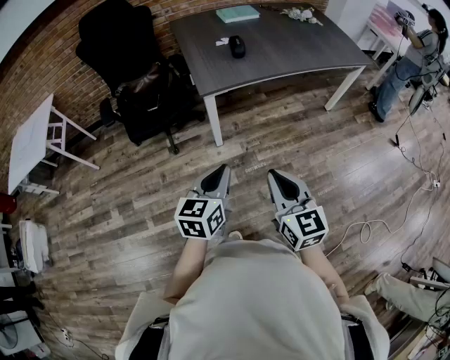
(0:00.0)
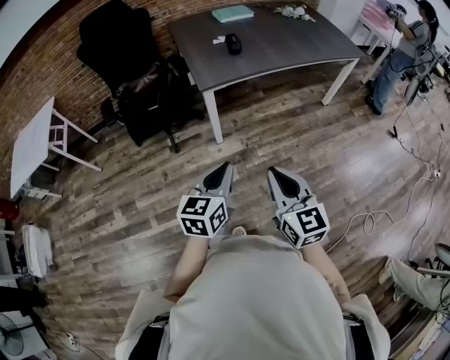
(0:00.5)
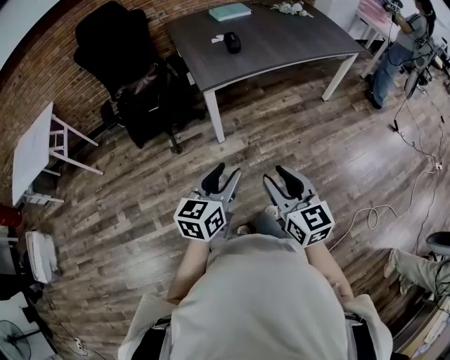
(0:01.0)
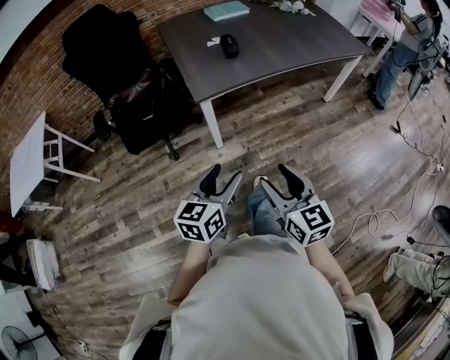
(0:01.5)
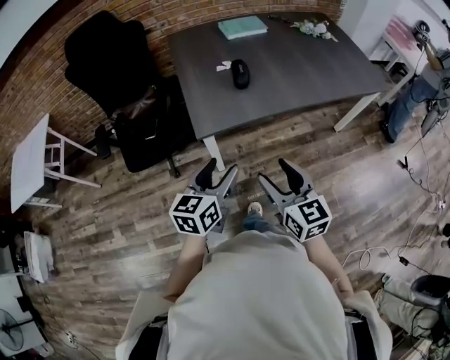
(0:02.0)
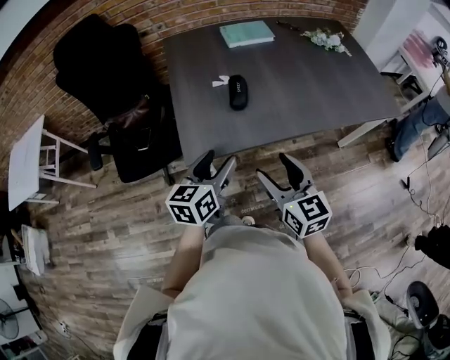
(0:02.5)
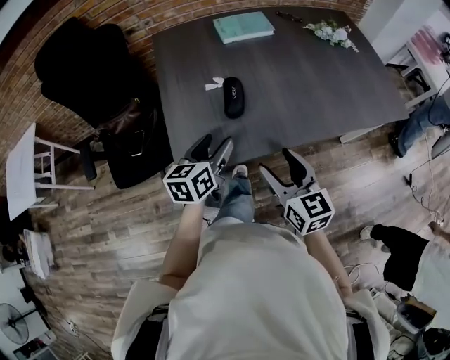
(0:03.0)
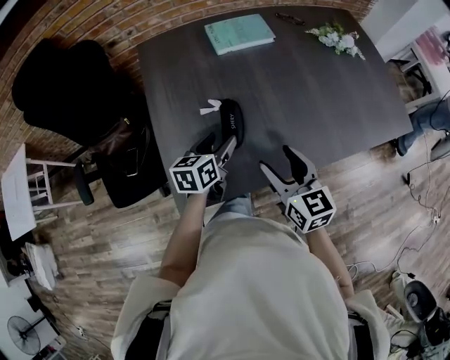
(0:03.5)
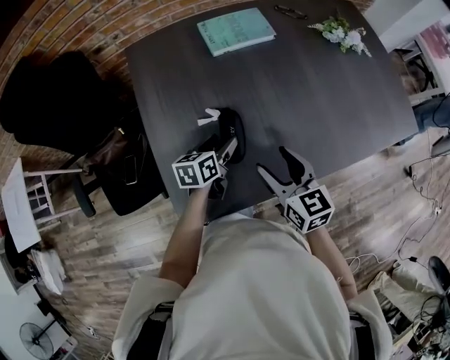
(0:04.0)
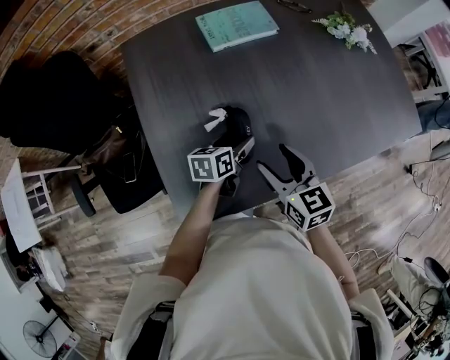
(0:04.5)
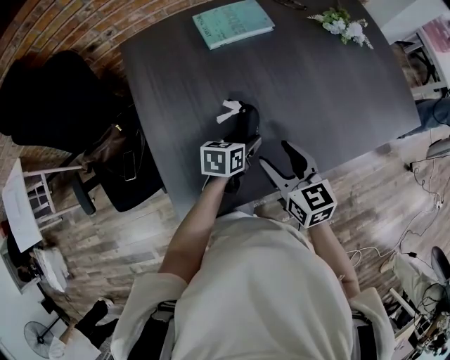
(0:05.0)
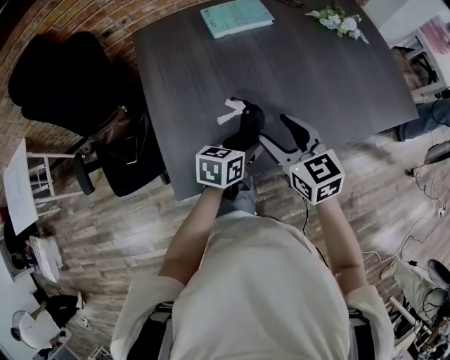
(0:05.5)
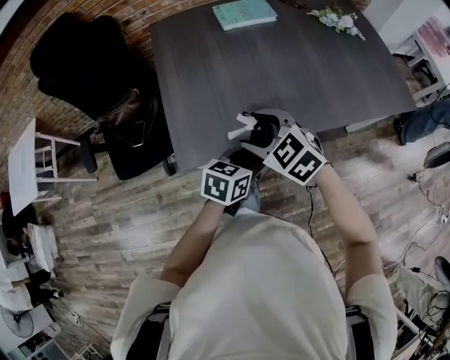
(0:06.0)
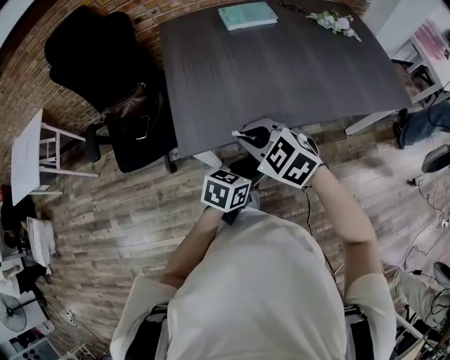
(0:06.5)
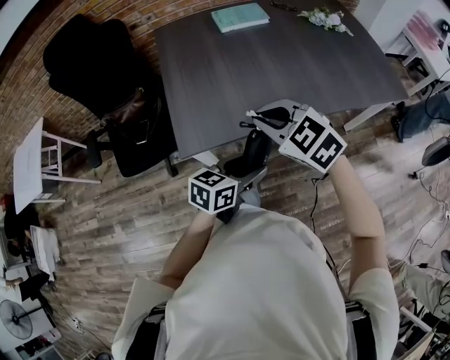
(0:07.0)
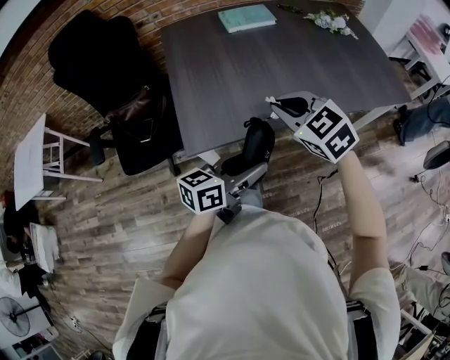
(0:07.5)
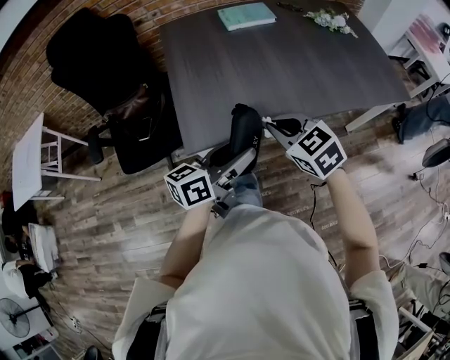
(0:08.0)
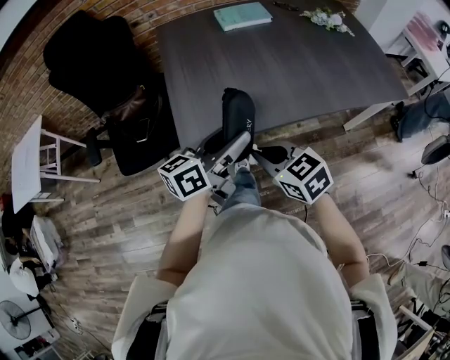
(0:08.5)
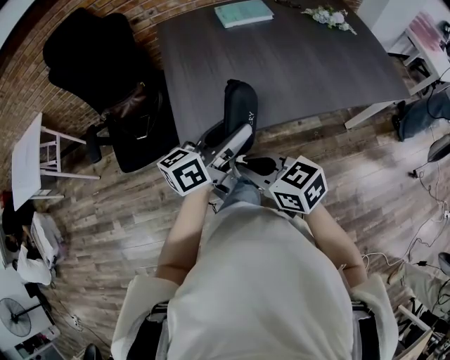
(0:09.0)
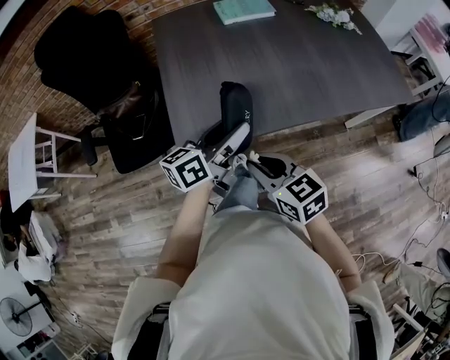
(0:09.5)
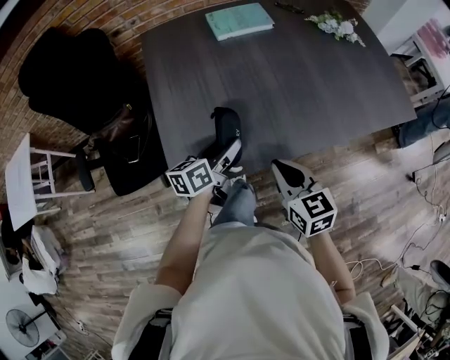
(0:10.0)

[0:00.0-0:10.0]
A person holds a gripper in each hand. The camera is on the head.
0:00.0 to 0:02.0: The two grippers go some 25 cm forward. The right gripper opens. Meanwhile the left gripper opens up.
0:02.0 to 0:04.0: Both grippers are carried forward, roughly 40 cm. The left gripper changes its angle by roughly 30 degrees.
0:04.0 to 0:06.0: The right gripper is displaced backward by some 15 cm, and swivels about 50 degrees. The left gripper shifts about 25 cm backward and to the right, and changes its angle by some 20 degrees.
0:06.0 to 0:08.0: The left gripper travels upward, backward and to the left by about 15 cm, and tilts its fingers about 30 degrees upward; the right gripper is displaced backward by approximately 5 cm, and closes up.
0:08.0 to 0:10.0: The right gripper goes approximately 5 cm forward, and turns by approximately 30 degrees. Meanwhile the left gripper heads forward and downward, covering some 20 cm.

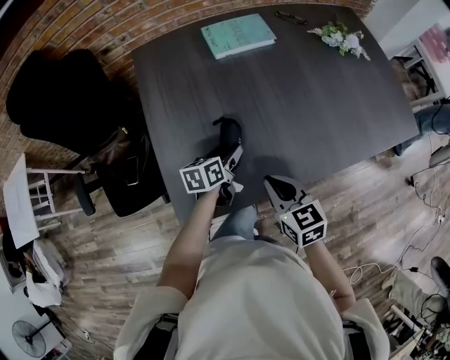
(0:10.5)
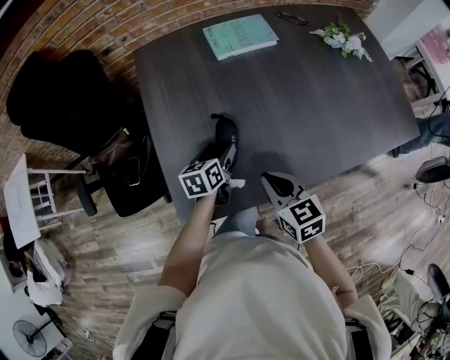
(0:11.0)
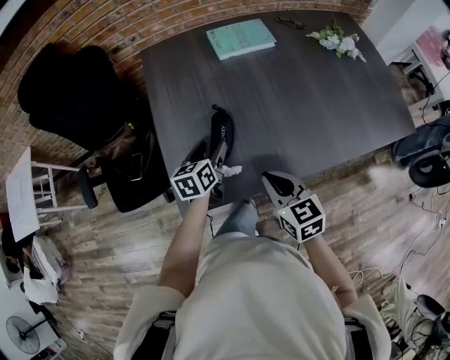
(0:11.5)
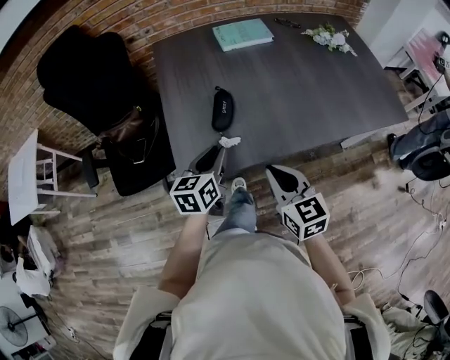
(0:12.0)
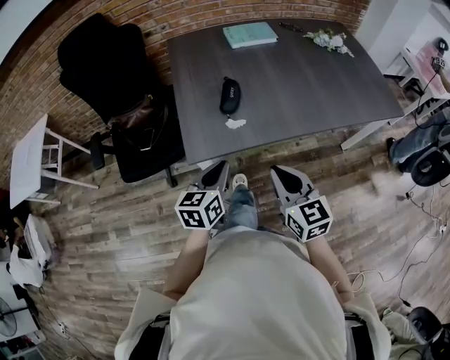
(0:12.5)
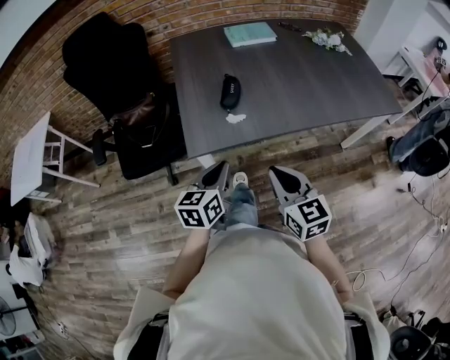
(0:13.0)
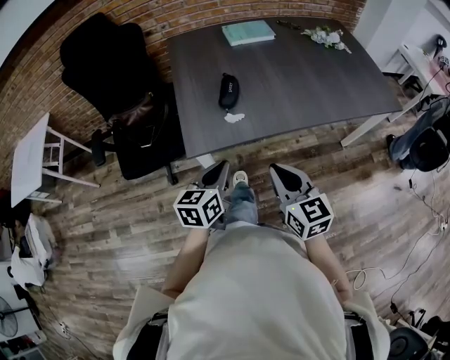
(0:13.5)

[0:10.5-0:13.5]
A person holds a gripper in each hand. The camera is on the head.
0:10.5 to 0:12.0: The grippers both shift backward and upward by some 15 cm. The left gripper turns by approximately 20 degrees, and closes up.
0:12.0 to 0:13.5: Both grippers move backward, approximately 15 cm.

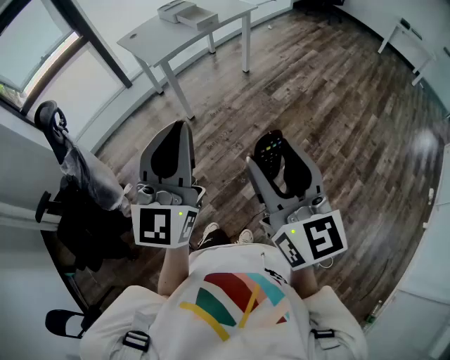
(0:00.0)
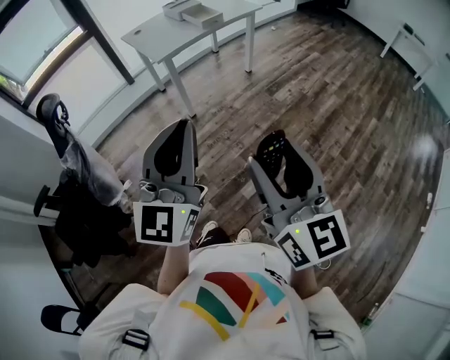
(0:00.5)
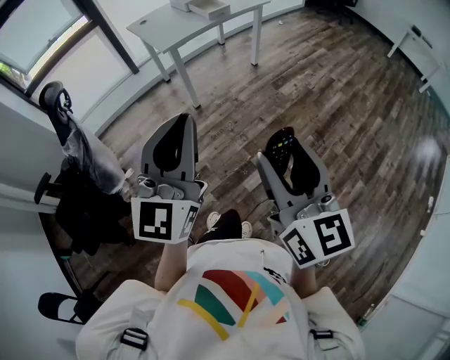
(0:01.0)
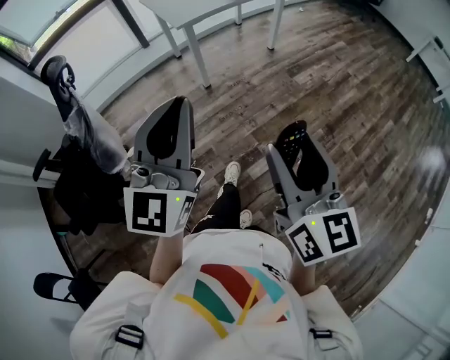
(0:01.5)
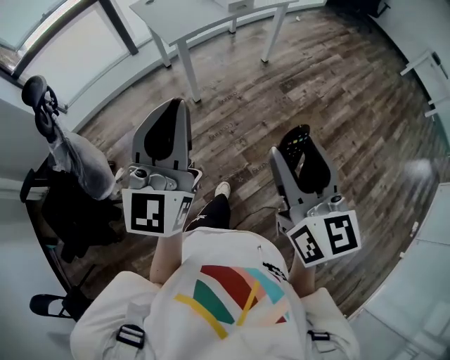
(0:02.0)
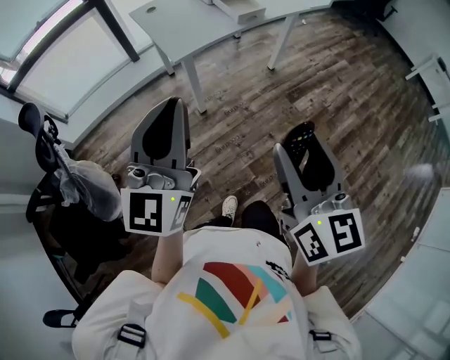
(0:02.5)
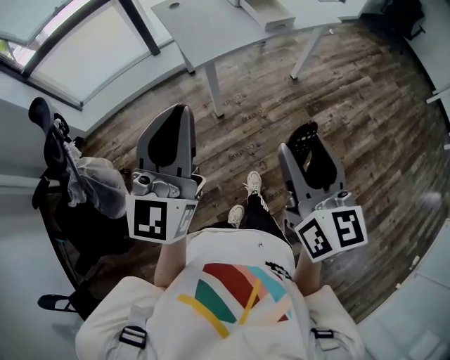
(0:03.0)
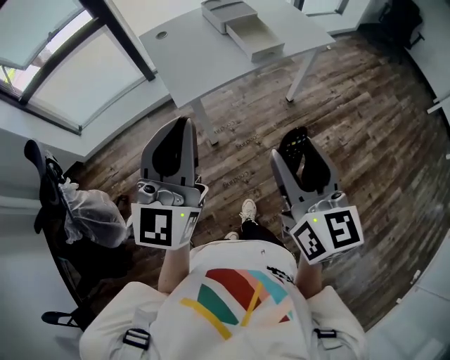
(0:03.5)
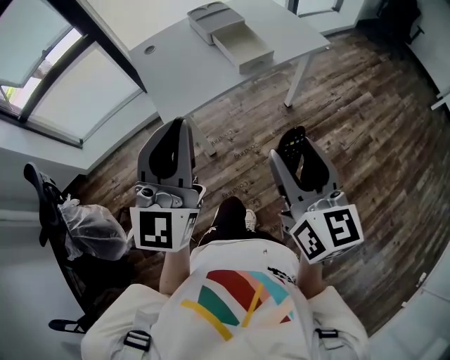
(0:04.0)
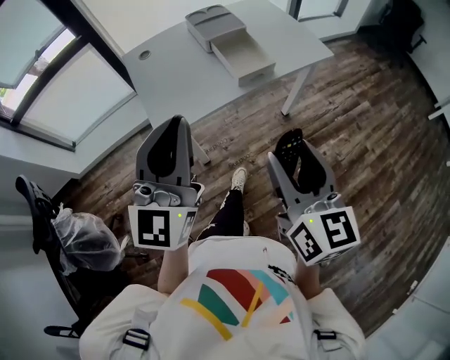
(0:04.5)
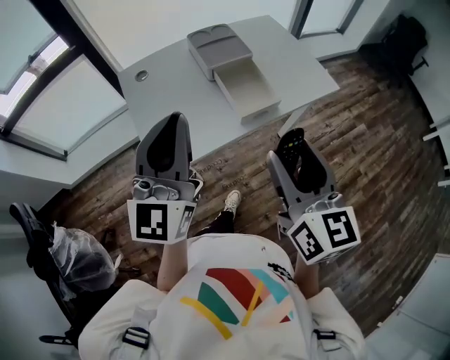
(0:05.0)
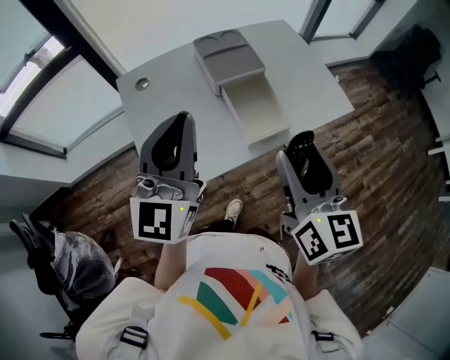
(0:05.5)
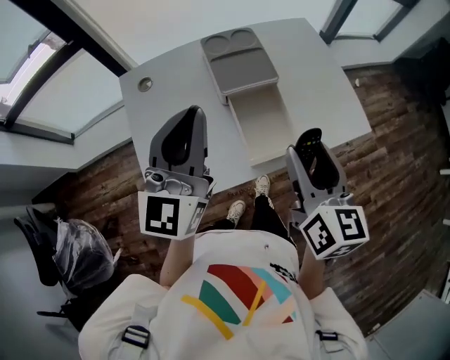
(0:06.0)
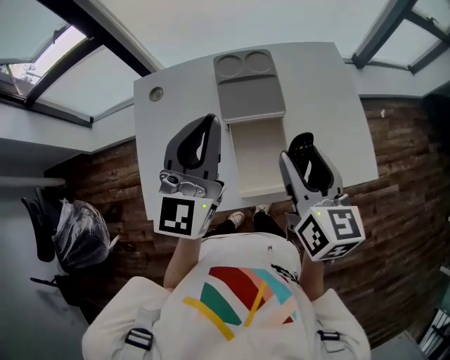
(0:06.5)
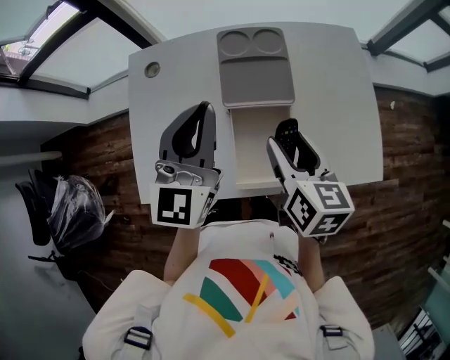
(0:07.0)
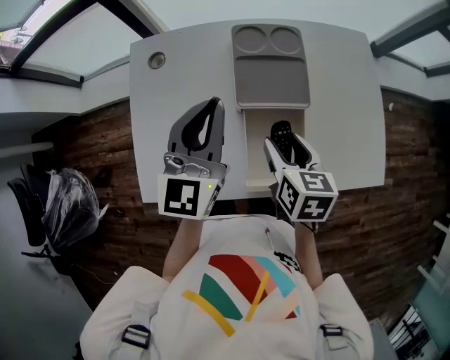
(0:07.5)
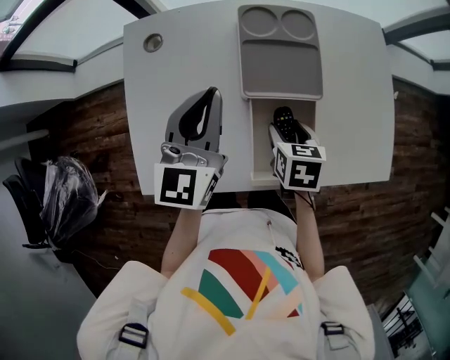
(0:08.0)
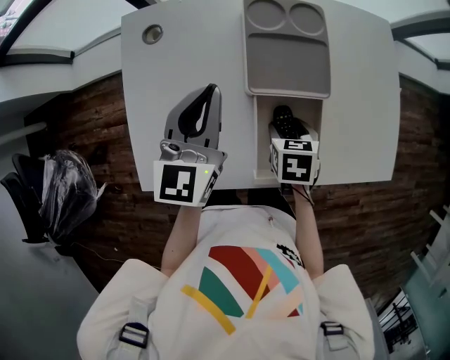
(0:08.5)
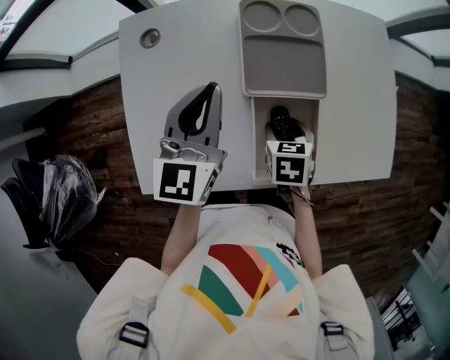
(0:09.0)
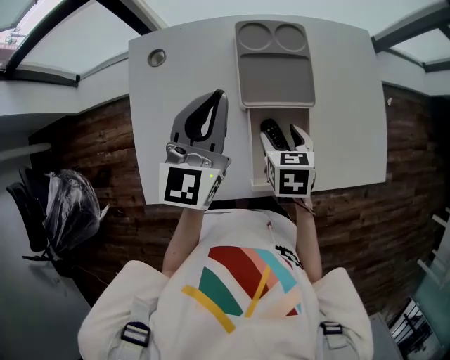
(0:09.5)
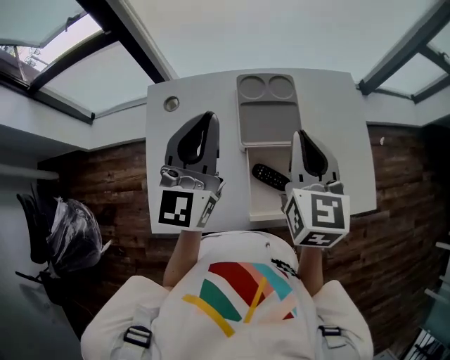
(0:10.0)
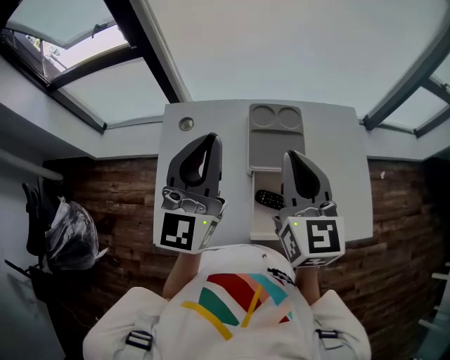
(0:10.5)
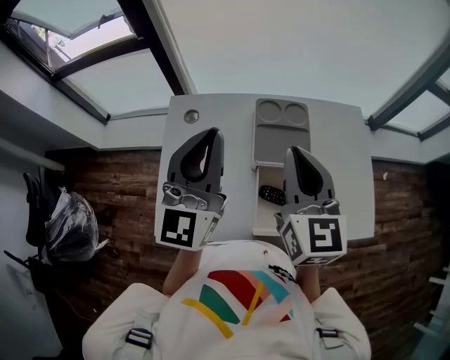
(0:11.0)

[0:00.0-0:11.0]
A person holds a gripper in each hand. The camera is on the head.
0:00.0 to 0:02.0: The right gripper is displaced forward by some 20 cm. Meanwhile the left gripper heads forward and to the left, covering roughly 20 cm.
0:02.0 to 0:03.5: Both grippers travel together forward, approximately 30 cm.
0:03.5 to 0:05.5: The grippers both shift forward by approximately 40 cm.
0:05.5 to 0:07.5: The two grippers go approximately 25 cm forward and downward. The right gripper tips its fingers downward by some 30 degrees, while the left gripper changes its angle by some 20 degrees.
0:07.5 to 0:09.0: The right gripper goes some 10 cm downward, and changes its angle by about 20 degrees. The left gripper moves downward, roughly 5 cm.
0:09.0 to 0:11.0: The left gripper is displaced upward by some 20 cm, and swivels roughly 30 degrees. Meanwhile the right gripper shifts some 35 cm upward, tips its fingers upward by some 60 degrees, and closes its fingers.

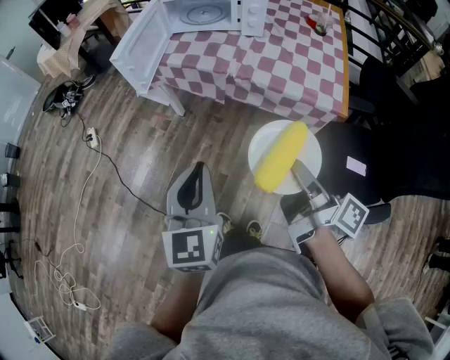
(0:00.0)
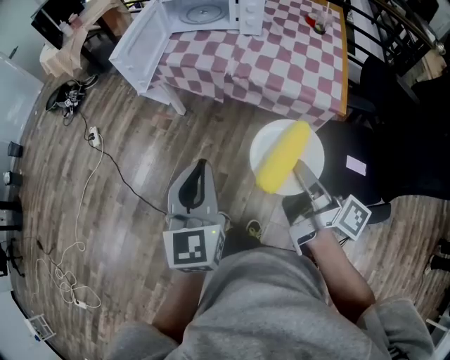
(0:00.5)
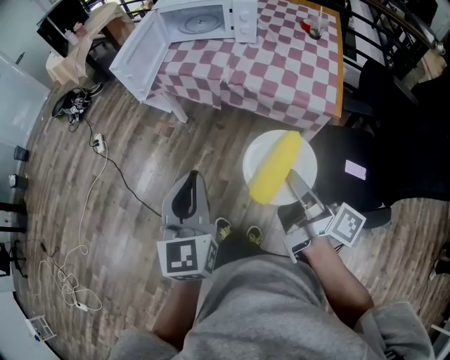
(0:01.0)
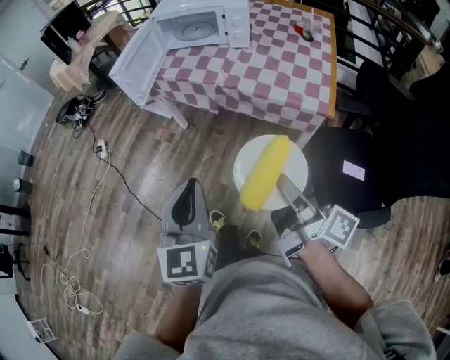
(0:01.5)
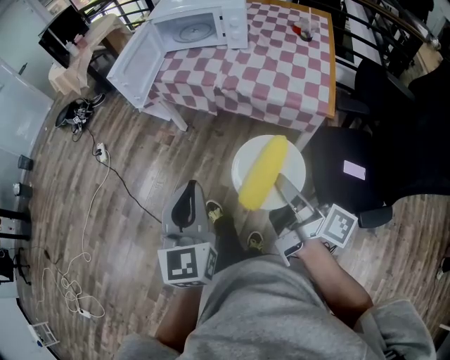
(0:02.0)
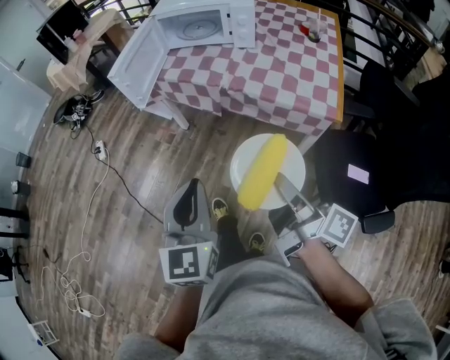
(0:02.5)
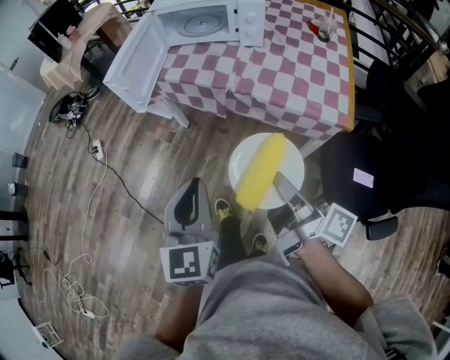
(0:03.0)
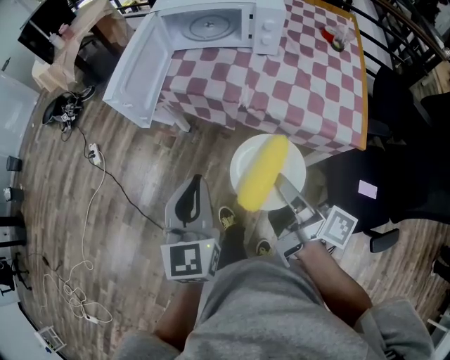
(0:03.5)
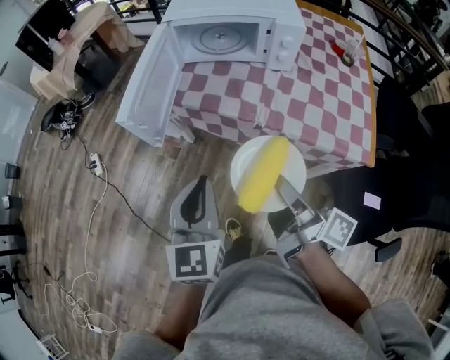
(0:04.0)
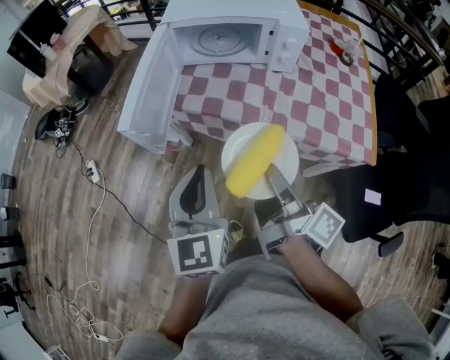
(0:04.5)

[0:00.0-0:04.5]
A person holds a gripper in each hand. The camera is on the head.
0:00.0 to 0:02.0: The two grippers go some 5 cm backward.
0:02.0 to 0:04.5: The left gripper goes approximately 35 cm forward; the right gripper travels forward and to the left by some 35 cm.
